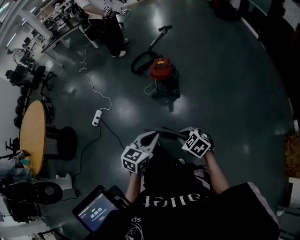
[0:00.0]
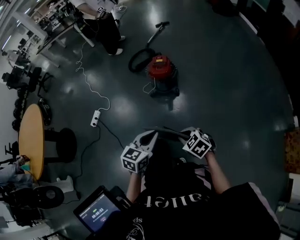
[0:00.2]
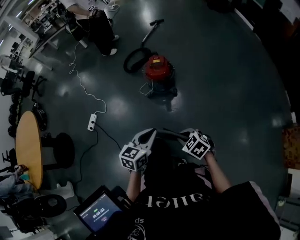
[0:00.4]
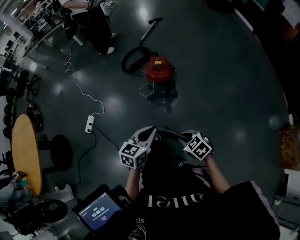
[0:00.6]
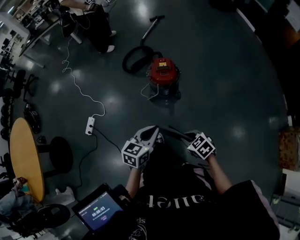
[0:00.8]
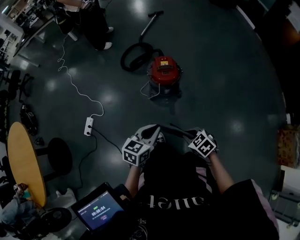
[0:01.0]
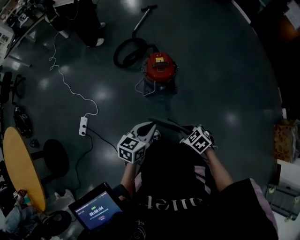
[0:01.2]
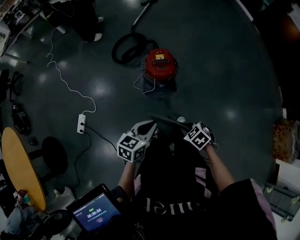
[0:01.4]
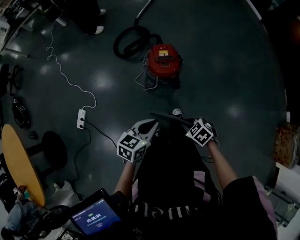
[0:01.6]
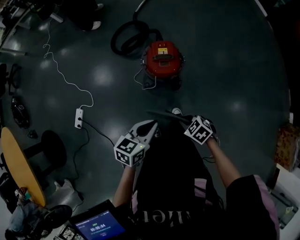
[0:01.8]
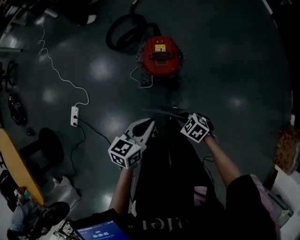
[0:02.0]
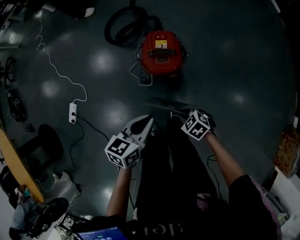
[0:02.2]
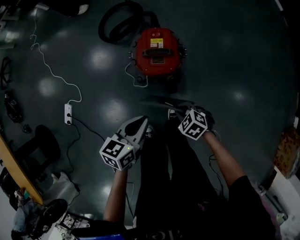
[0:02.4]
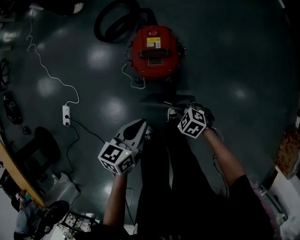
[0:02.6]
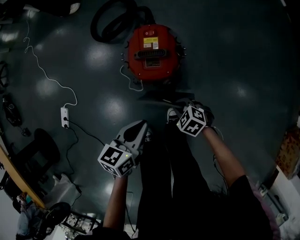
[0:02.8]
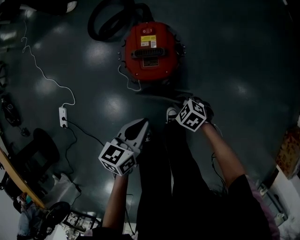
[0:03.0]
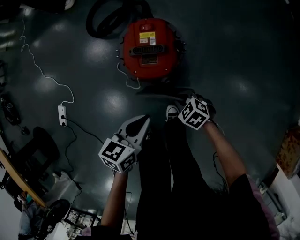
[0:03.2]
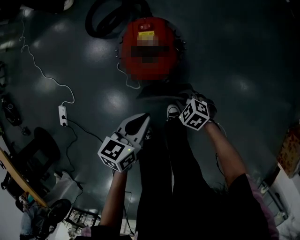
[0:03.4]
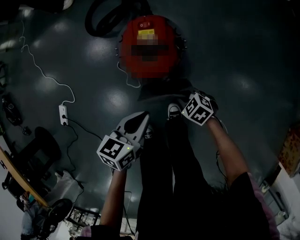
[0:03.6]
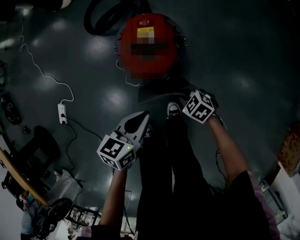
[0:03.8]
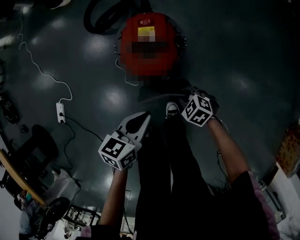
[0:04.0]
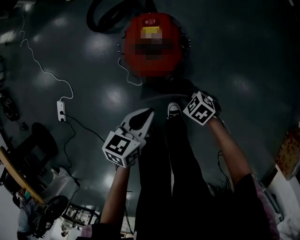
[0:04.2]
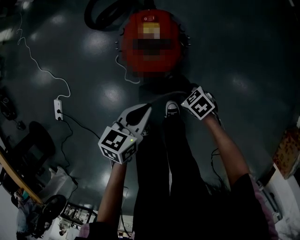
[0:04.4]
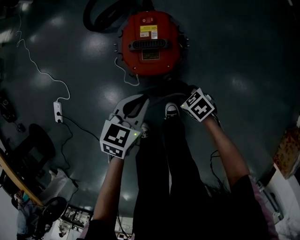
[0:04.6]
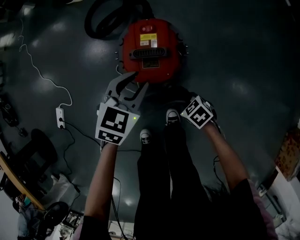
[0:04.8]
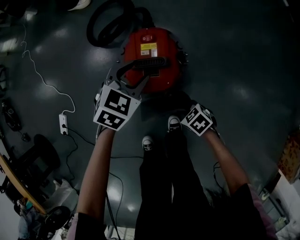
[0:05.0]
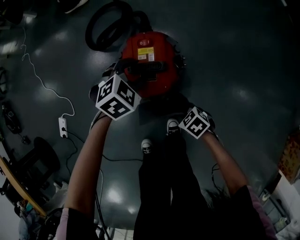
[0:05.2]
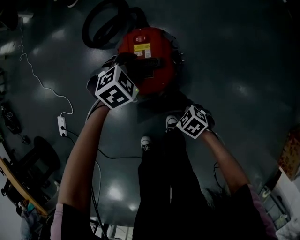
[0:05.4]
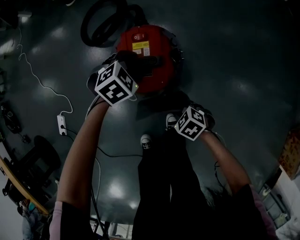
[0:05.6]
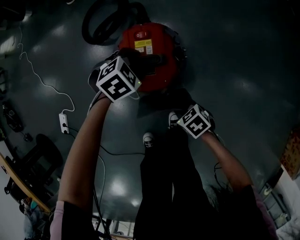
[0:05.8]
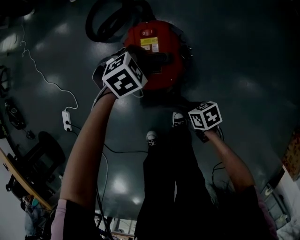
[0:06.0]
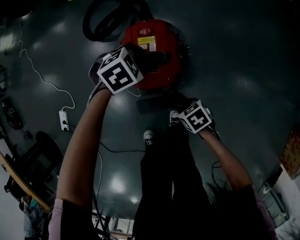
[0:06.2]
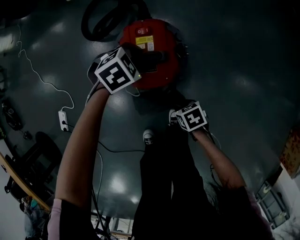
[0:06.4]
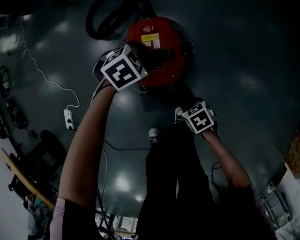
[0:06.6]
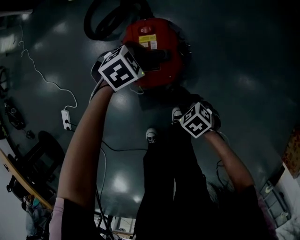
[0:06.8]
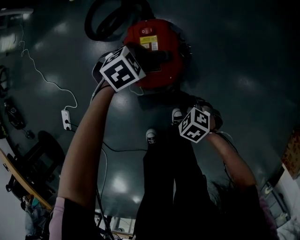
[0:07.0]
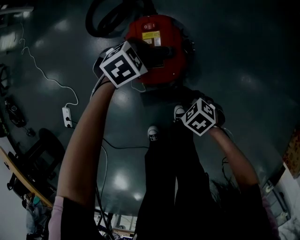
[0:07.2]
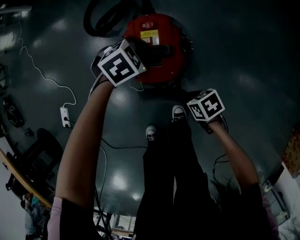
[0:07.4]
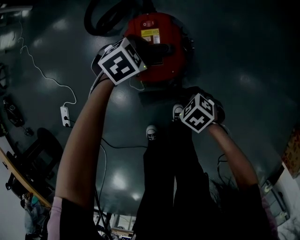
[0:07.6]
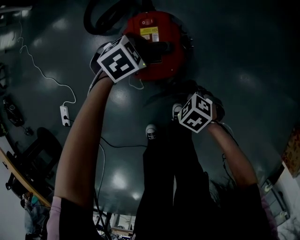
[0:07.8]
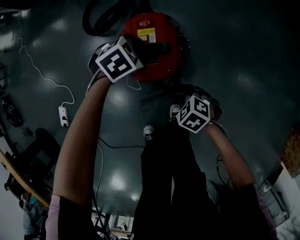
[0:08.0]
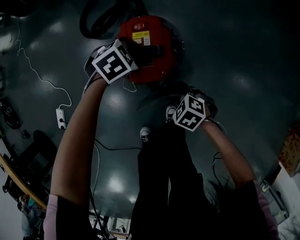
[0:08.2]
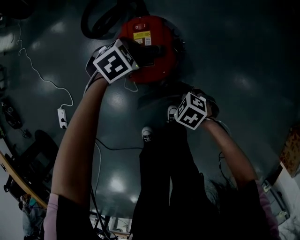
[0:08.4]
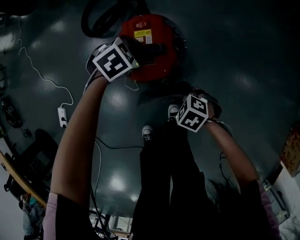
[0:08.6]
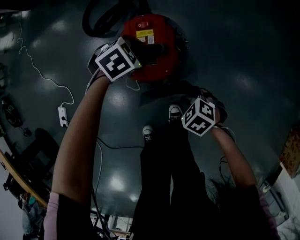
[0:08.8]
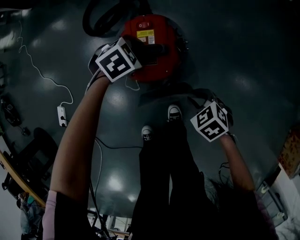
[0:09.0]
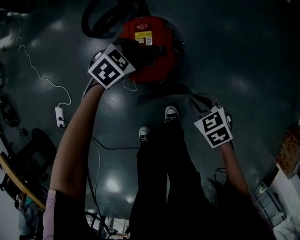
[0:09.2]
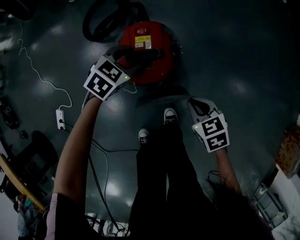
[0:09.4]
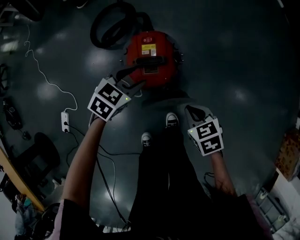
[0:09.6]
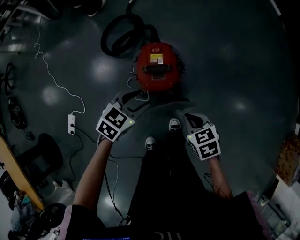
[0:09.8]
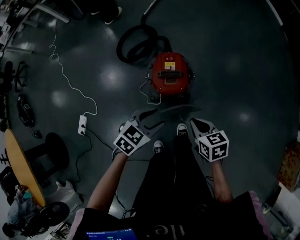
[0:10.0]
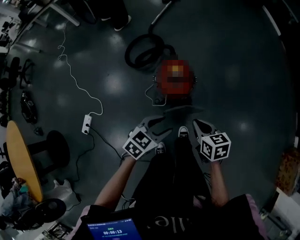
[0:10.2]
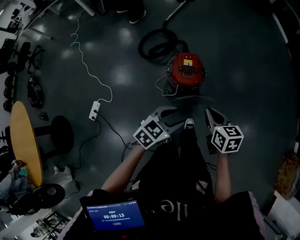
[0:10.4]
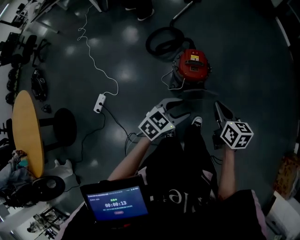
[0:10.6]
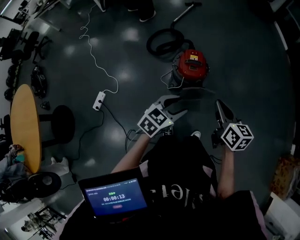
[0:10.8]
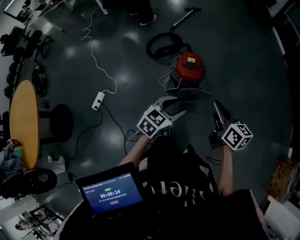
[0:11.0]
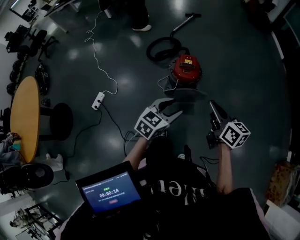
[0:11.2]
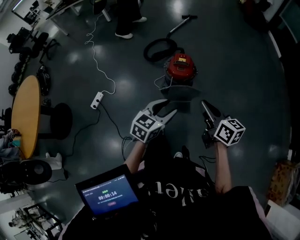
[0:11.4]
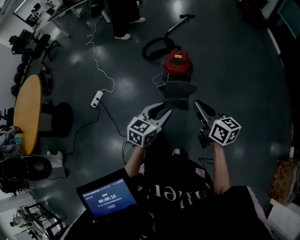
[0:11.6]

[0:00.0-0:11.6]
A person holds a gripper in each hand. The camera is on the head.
0:00.0 to 0:01.4: The left gripper moves forward, approximately 35 cm, while the right gripper is displaced forward and downward by approximately 35 cm, and changes its angle by approximately 20 degrees.
0:01.4 to 0:02.8: The left gripper heads downward, forward and to the right, covering some 35 cm. The right gripper is displaced downward and forward by roughly 40 cm.
0:02.8 to 0:04.4: Both grippers move downward, some 5 cm.
0:04.4 to 0:05.8: The left gripper changes place by approximately 20 cm, rolls clockwise, seen from behind, by roughly 60 degrees, and opens.
0:08.8 to 0:10.2: The grippers both shift upward by roughly 35 cm. The left gripper swivels roughly 40 degrees; the right gripper swivels approximately 50 degrees, and closes up.
0:10.2 to 0:11.6: Both grippers travel together backward and upward, roughly 35 cm. The left gripper turns by some 30 degrees. The right gripper angles its fingers upward, by about 30 degrees.

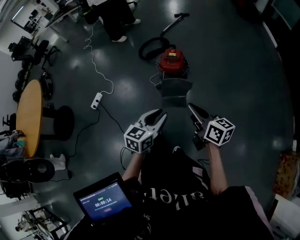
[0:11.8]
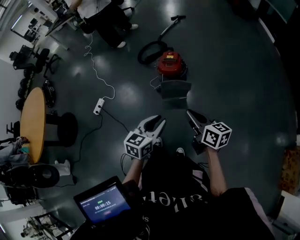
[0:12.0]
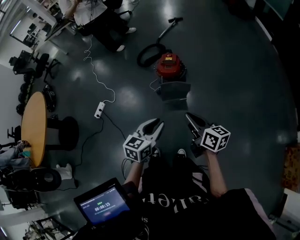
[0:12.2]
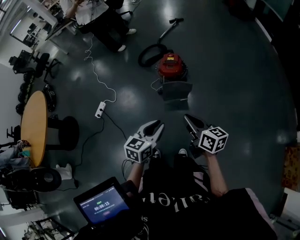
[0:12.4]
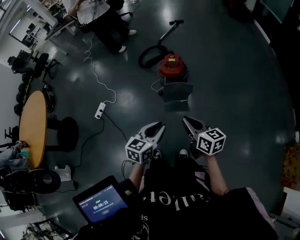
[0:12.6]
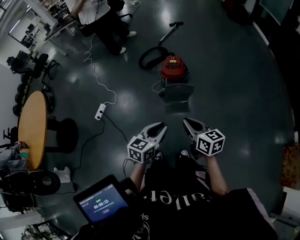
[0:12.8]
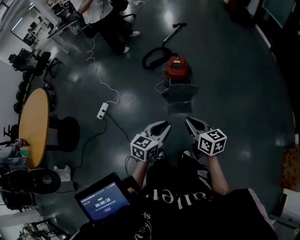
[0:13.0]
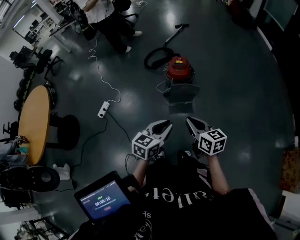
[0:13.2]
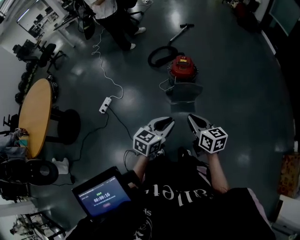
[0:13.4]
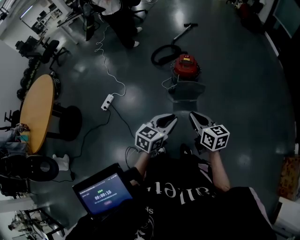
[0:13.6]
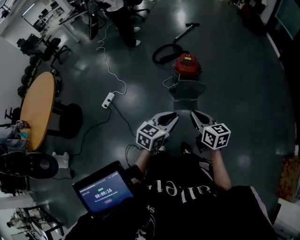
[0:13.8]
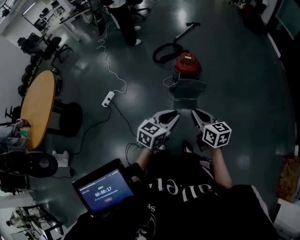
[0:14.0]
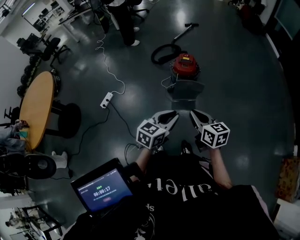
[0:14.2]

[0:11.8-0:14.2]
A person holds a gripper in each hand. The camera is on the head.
0:11.8 to 0:13.0: The right gripper shifts about 10 cm to the left and backward. Meanwhile the left gripper is displaced backward and to the left by about 10 cm.
0:13.0 to 0:14.2: There are only small adjustments of the grippers.

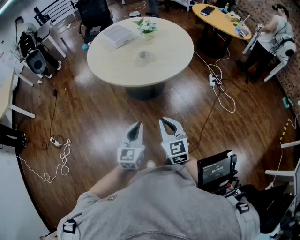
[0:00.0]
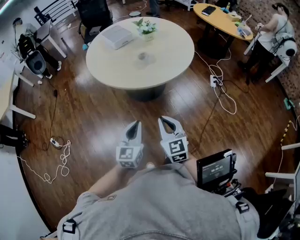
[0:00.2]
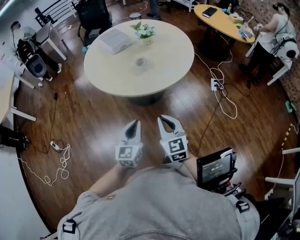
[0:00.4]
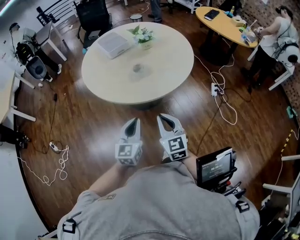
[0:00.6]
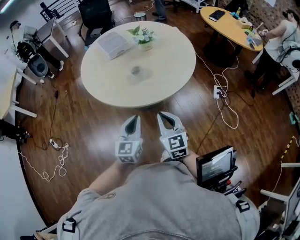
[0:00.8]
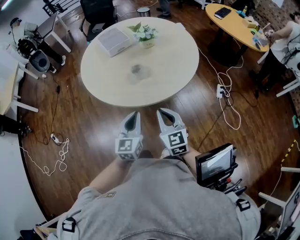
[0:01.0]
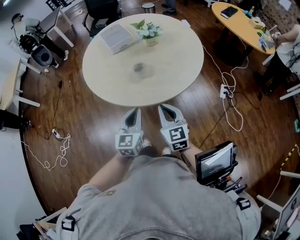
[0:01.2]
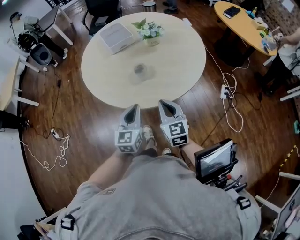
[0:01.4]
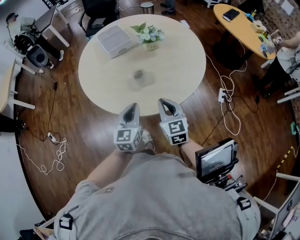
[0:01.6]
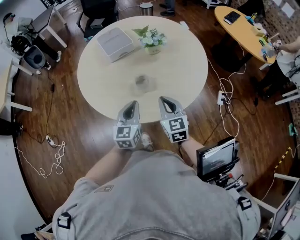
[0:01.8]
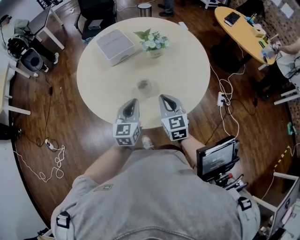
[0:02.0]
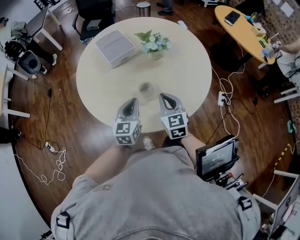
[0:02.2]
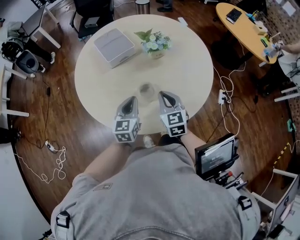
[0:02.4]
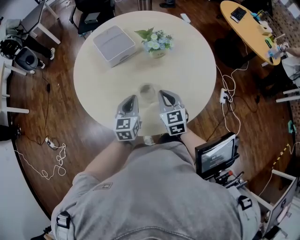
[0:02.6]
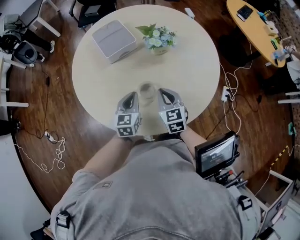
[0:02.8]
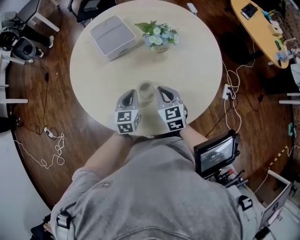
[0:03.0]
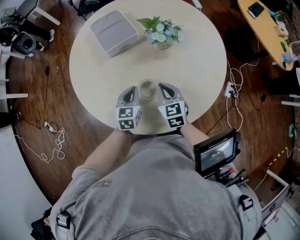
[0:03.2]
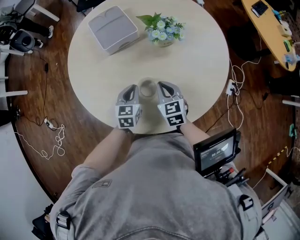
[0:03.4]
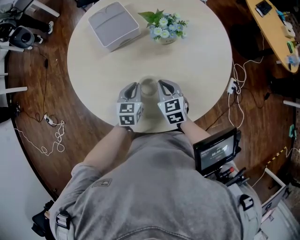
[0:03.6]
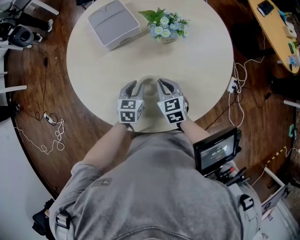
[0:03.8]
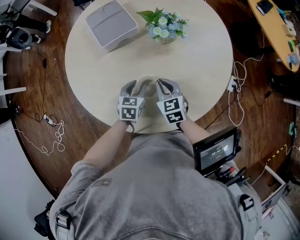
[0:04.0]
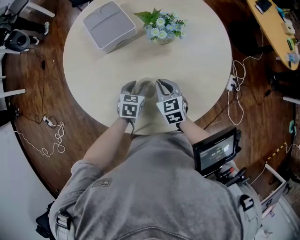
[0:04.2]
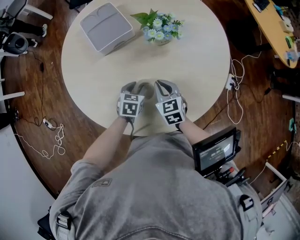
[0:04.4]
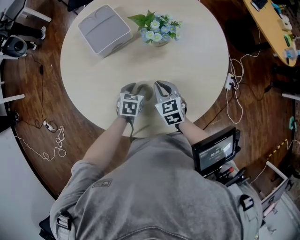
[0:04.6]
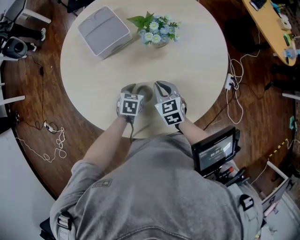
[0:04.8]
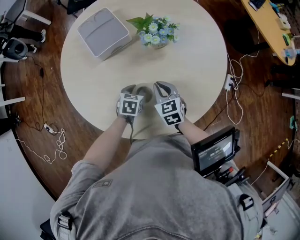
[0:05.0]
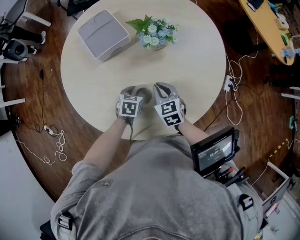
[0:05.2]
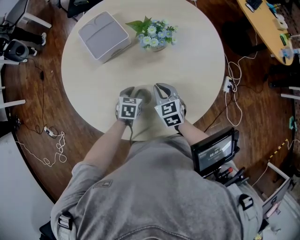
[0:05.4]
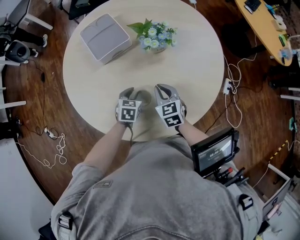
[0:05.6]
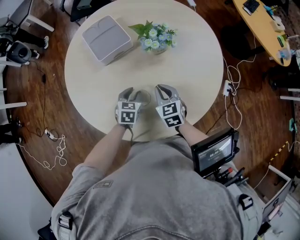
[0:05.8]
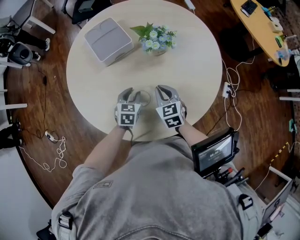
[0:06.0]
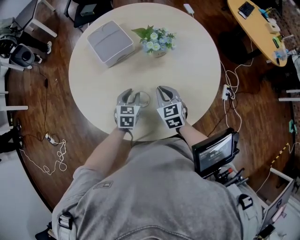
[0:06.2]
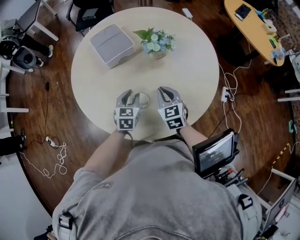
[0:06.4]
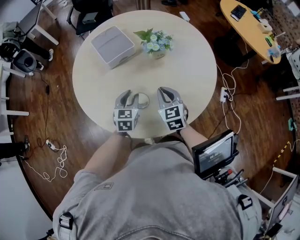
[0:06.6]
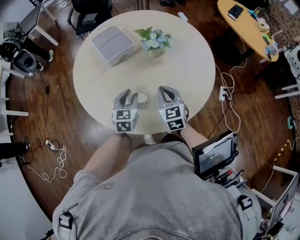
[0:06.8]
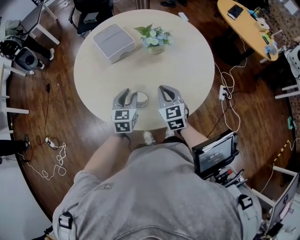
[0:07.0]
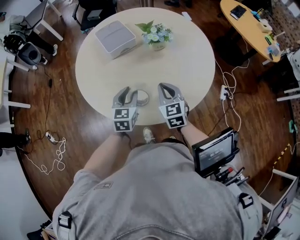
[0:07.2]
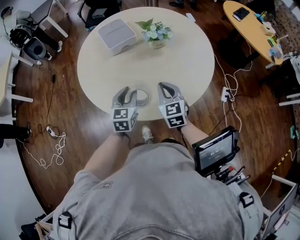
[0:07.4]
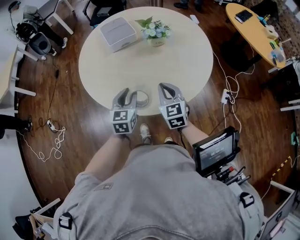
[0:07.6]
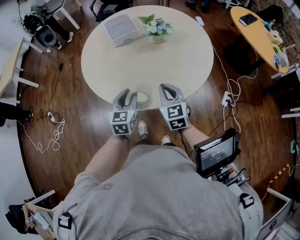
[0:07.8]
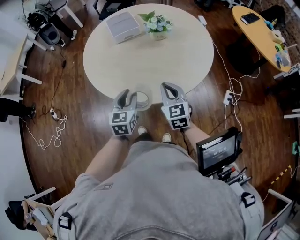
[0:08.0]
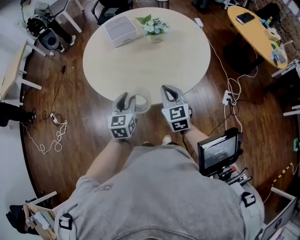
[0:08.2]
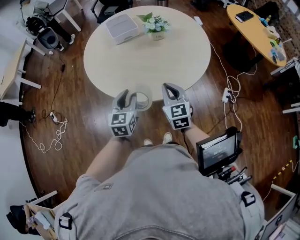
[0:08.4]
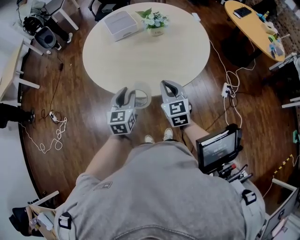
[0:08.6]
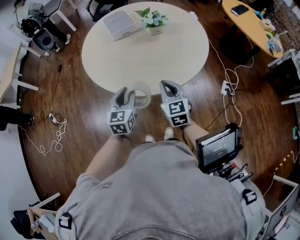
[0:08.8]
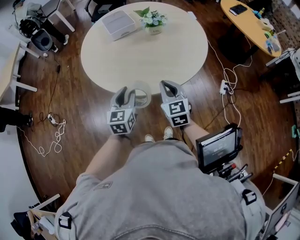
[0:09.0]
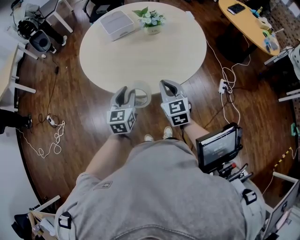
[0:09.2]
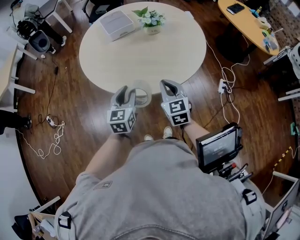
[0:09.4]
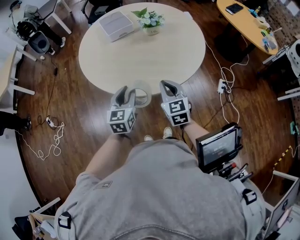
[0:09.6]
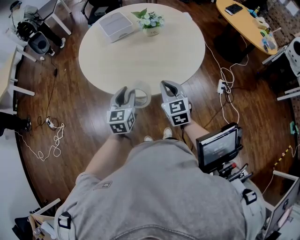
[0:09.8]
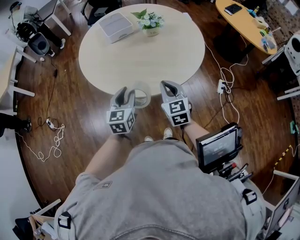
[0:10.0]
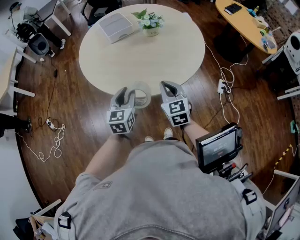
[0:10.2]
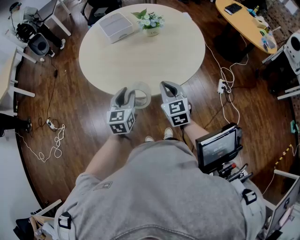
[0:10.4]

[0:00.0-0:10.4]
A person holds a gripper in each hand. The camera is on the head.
0:00.0 to 0:01.4: The two grippers go about 30 cm forward and to the right.
0:01.4 to 0:03.0: The left gripper shifts approximately 30 cm forward and downward; the right gripper travels forward by roughly 25 cm.
0:03.0 to 0:04.4: The left gripper moves downward, about 10 cm, swivels roughly 30 degrees, and opens its fingers. Meanwhile the right gripper heads downward, covering about 5 cm.
0:04.4 to 0:06.0: The left gripper moves about 5 cm.
0:06.0 to 0:07.4: Both grippers move backward and upward, about 15 cm.
0:07.4 to 0:09.0: The grippers both shift backward by roughly 15 cm.
0:09.0 to 0:10.4: Both grippers stay about where they are.
